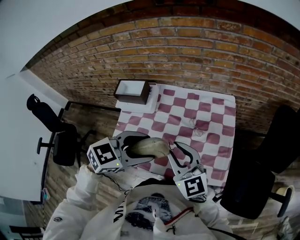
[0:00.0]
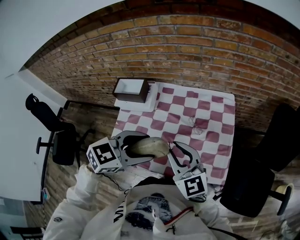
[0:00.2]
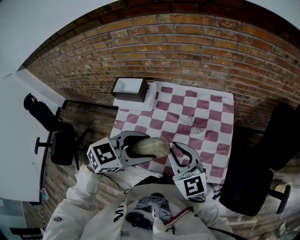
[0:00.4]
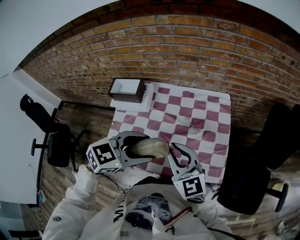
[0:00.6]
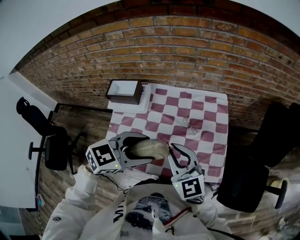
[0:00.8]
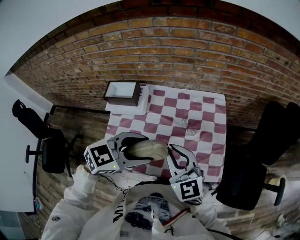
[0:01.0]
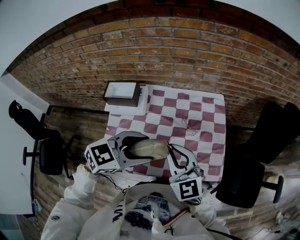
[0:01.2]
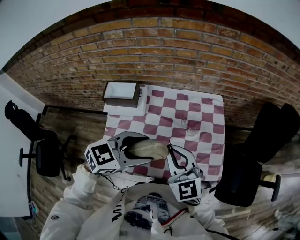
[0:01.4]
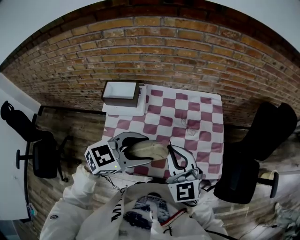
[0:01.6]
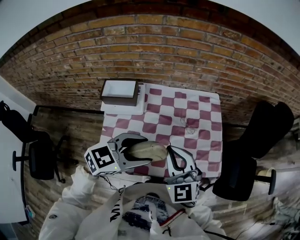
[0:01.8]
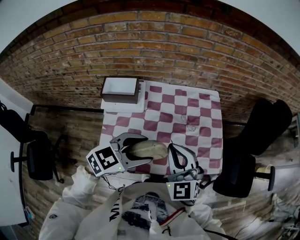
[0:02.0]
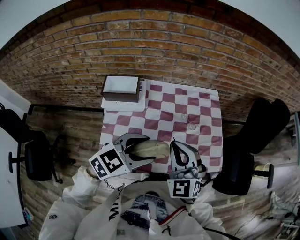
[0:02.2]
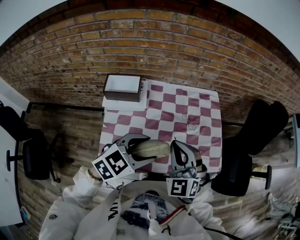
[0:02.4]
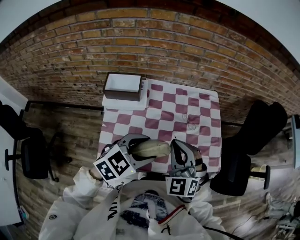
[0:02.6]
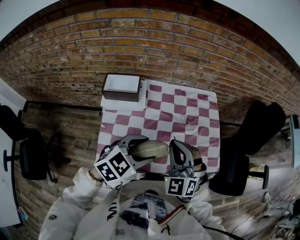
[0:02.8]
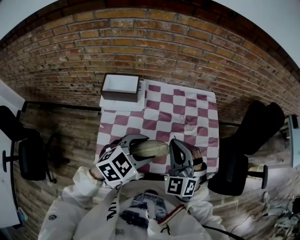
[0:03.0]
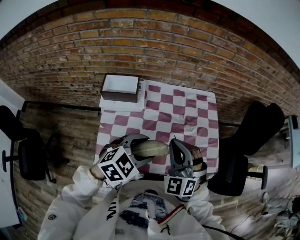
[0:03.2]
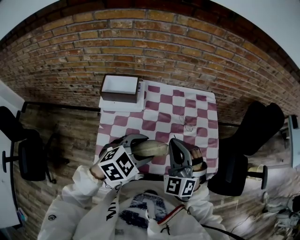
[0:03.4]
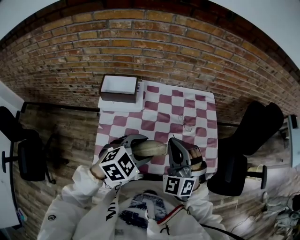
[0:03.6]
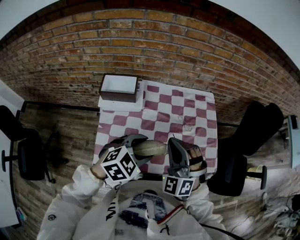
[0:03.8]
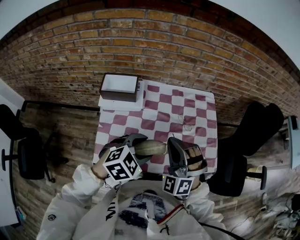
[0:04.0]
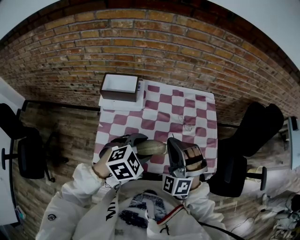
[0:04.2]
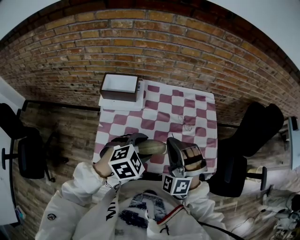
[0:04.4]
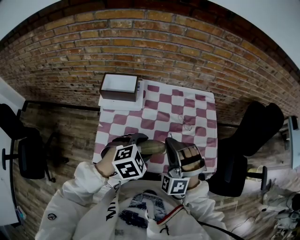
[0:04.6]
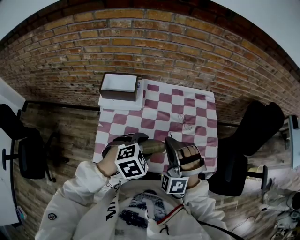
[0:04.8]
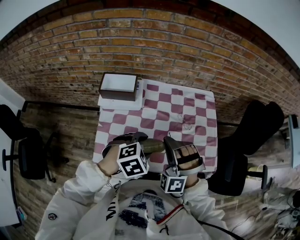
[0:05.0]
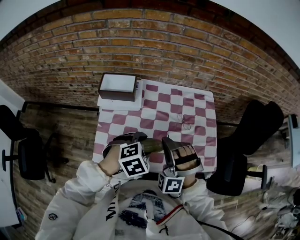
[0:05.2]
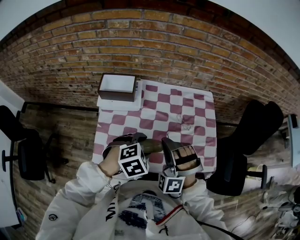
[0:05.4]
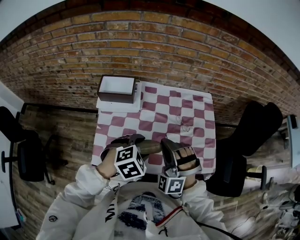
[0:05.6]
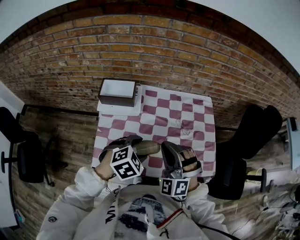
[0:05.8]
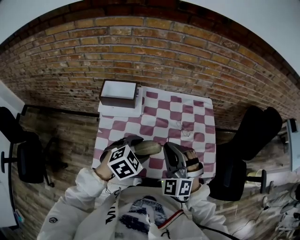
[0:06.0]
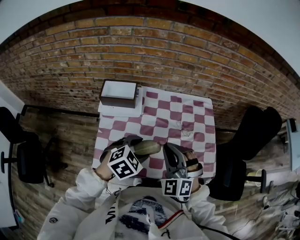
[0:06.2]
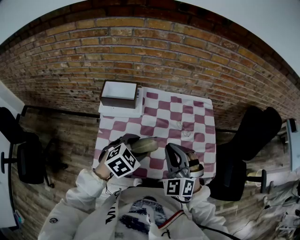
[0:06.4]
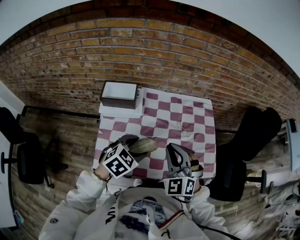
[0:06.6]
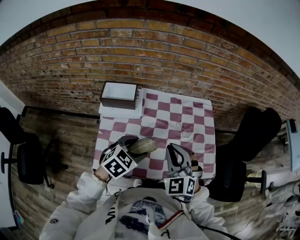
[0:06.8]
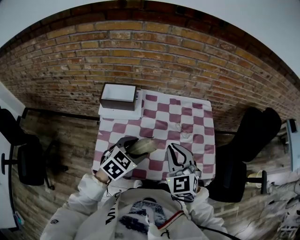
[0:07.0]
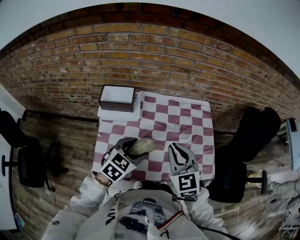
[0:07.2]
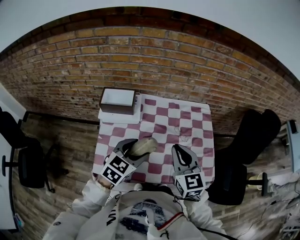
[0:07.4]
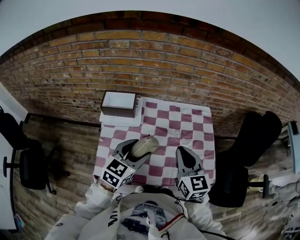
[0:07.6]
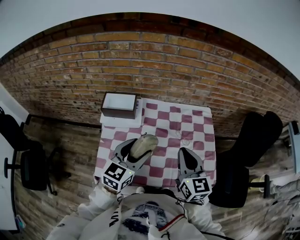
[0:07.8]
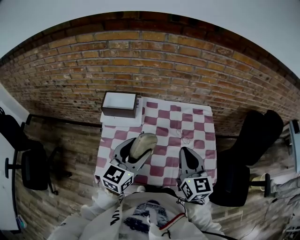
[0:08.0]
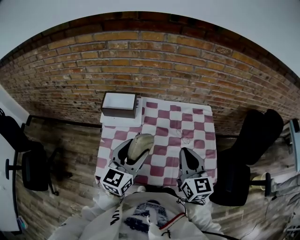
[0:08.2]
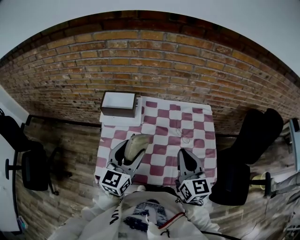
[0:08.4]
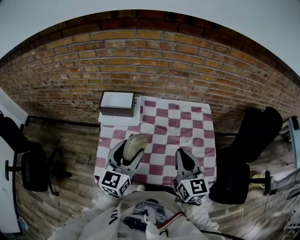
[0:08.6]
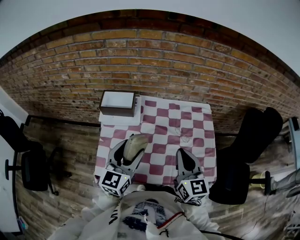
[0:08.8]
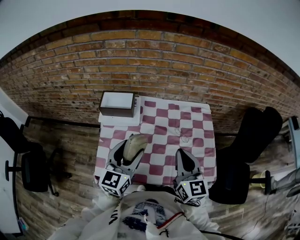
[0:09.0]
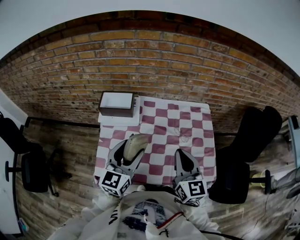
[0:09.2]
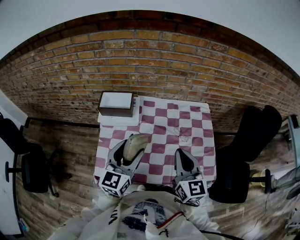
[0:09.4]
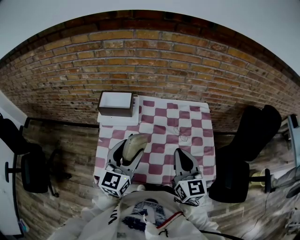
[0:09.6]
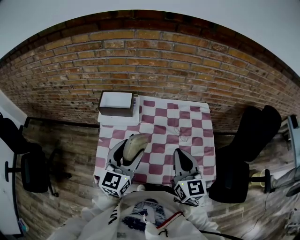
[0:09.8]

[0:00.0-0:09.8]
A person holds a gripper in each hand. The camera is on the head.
0:00.0 to 0:01.4: There are only small adjustments of the grippers.
0:01.4 to 0:02.8: The left gripper goes approximately 10 cm to the left and downward. Meanwhile the right gripper goes some 5 cm to the left, and turns by some 30 degrees.
0:02.8 to 0:04.2: The right gripper swivels roughly 20 degrees.
0:04.2 to 0:05.6: The grippers move only a little.
0:05.6 to 0:07.0: The left gripper changes its angle by some 30 degrees; the right gripper twists roughly 50 degrees clockwise, seen from behind.
0:07.0 to 0:08.4: The left gripper is displaced upward by approximately 10 cm, and points its fingers roughly 30 degrees further upward, while the right gripper goes roughly 5 cm to the right, and turns by about 40 degrees.
0:08.4 to 0:09.8: Both grippers stay about where they are.

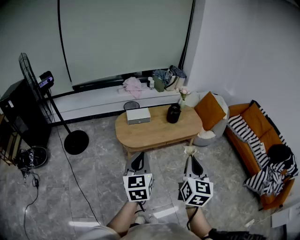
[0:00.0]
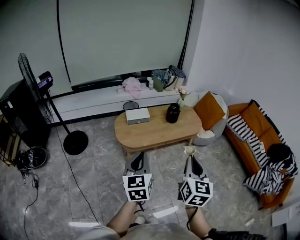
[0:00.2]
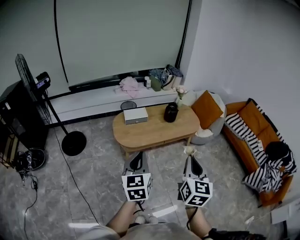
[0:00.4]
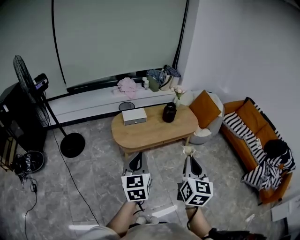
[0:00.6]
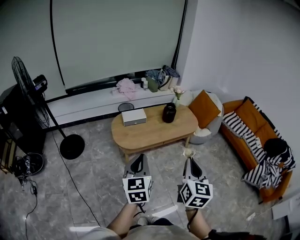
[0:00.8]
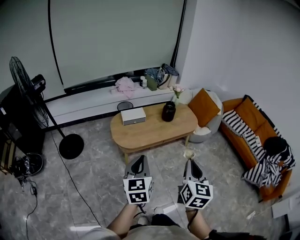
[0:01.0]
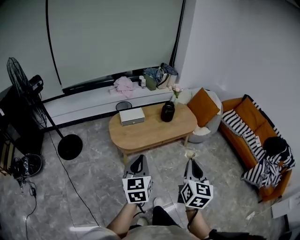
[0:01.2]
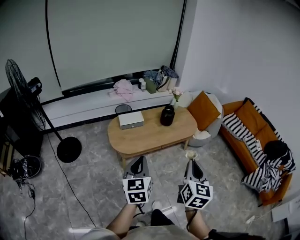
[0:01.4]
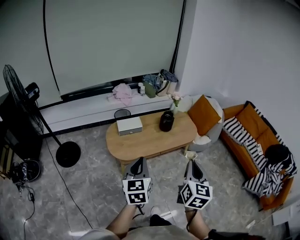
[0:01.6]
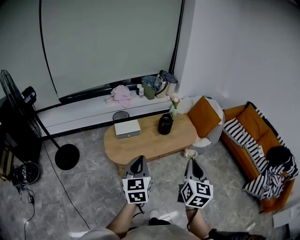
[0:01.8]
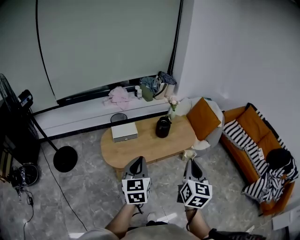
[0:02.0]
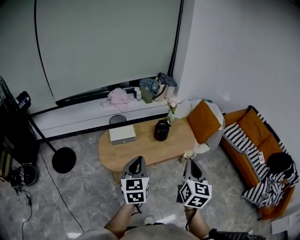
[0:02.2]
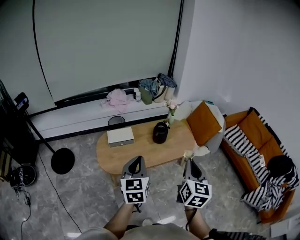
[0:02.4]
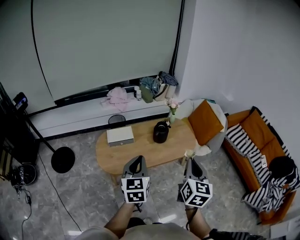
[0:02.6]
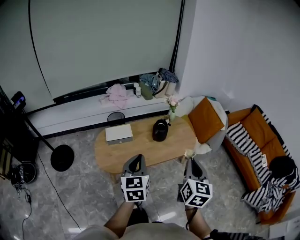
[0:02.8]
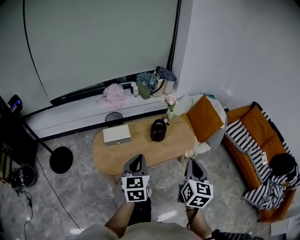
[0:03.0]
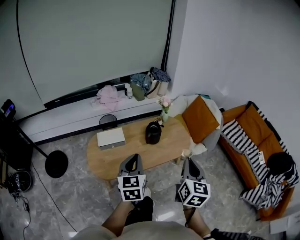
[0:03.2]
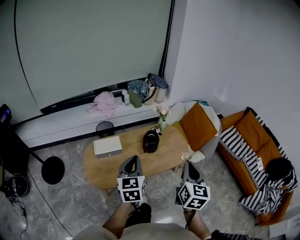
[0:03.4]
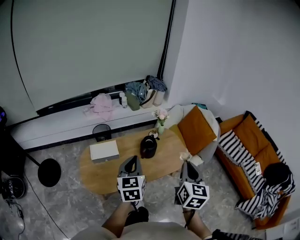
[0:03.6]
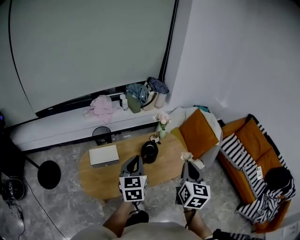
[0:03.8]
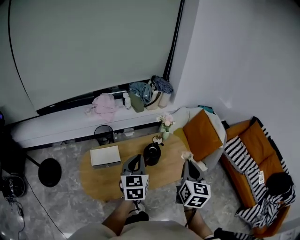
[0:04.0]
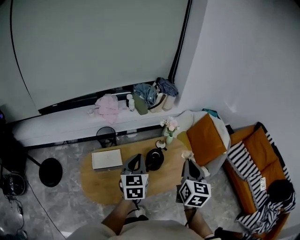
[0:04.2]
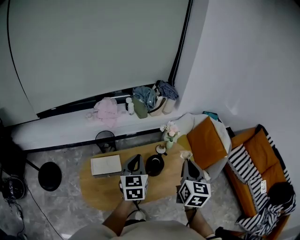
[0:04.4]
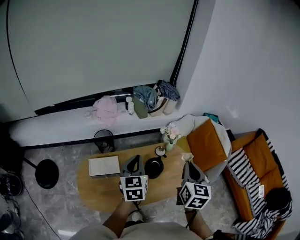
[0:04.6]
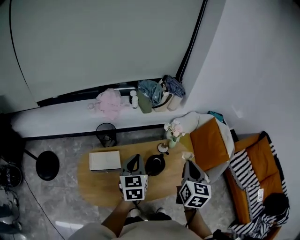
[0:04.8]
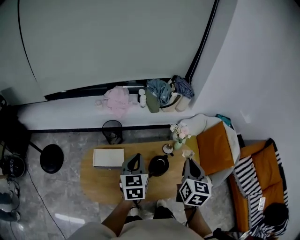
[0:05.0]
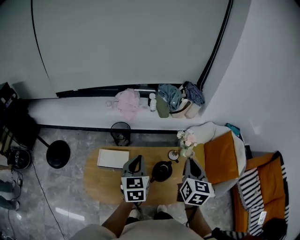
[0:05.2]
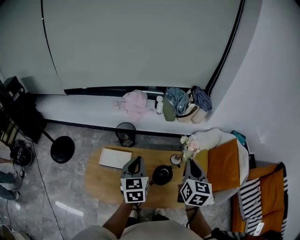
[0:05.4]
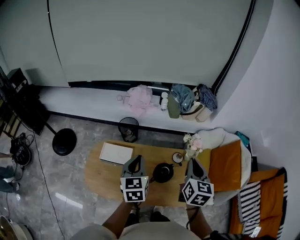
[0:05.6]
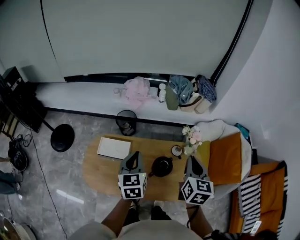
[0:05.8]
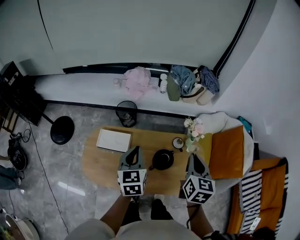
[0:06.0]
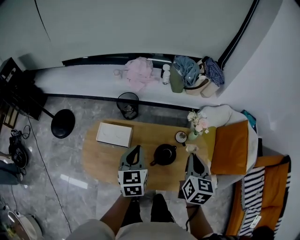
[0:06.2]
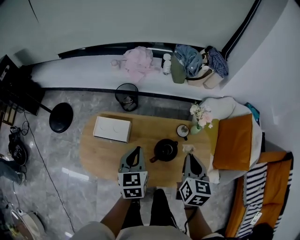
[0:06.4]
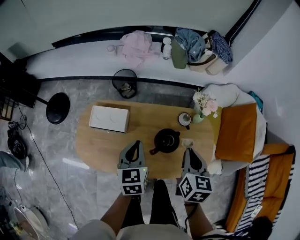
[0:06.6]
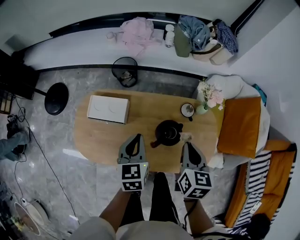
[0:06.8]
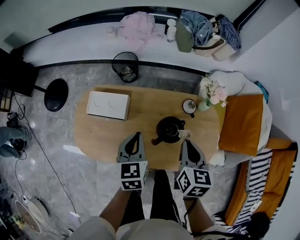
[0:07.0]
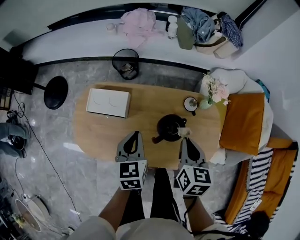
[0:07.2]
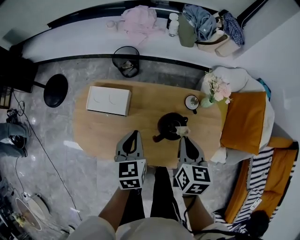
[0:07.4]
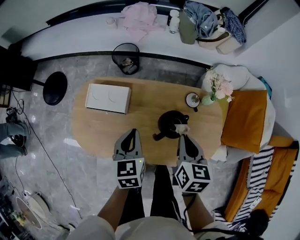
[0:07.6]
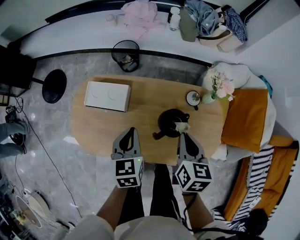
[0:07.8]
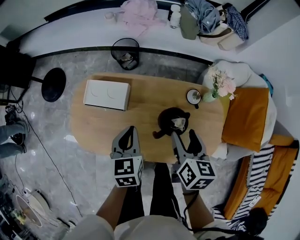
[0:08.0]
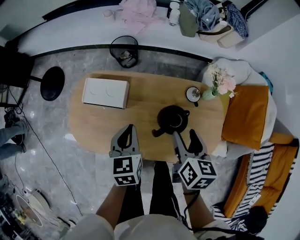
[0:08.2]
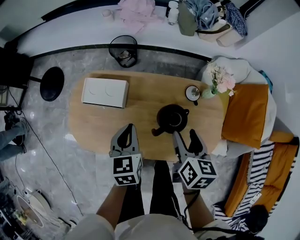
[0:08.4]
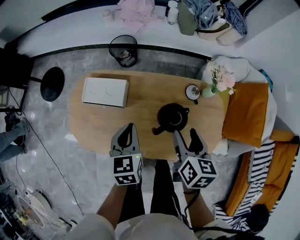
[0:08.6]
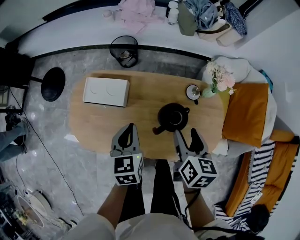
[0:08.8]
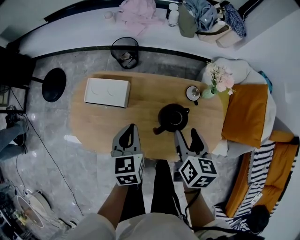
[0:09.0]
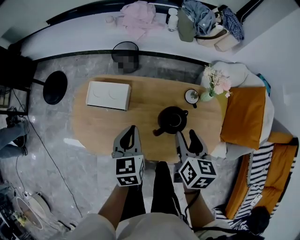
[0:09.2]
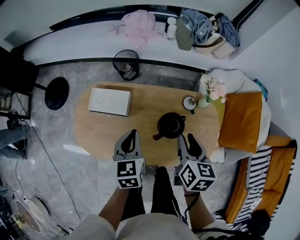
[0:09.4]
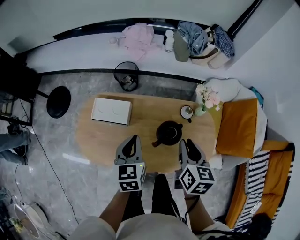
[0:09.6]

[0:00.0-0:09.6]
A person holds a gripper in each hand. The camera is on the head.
0:00.0 to 0:01.6: Both grippers move forward, roughly 10 cm.
0:01.6 to 0:03.2: The right gripper heads forward and to the right, covering approximately 20 cm. Meanwhile the left gripper goes some 20 cm forward.
0:03.2 to 0:04.8: Both grippers move forward, some 30 cm.
0:04.8 to 0:06.4: The right gripper shifts approximately 15 cm downward and forward, and changes its angle by about 20 degrees, while the left gripper is displaced downward by some 10 cm, and changes its angle by about 20 degrees.
0:06.4 to 0:08.0: Both grippers move downward, some 10 cm. The right gripper opens up.
0:08.0 to 0:09.6: Both grippers travel together upward, approximately 5 cm. The right gripper closes.

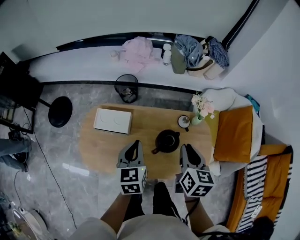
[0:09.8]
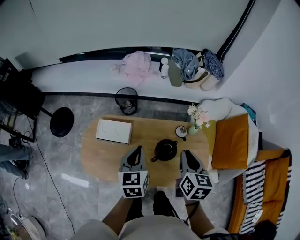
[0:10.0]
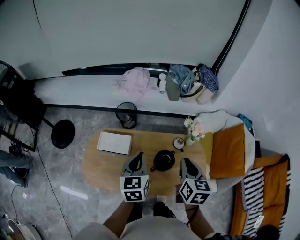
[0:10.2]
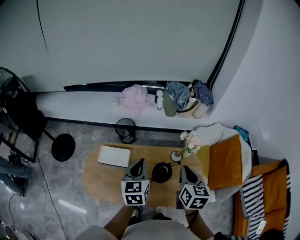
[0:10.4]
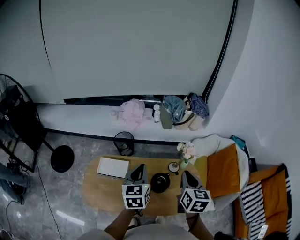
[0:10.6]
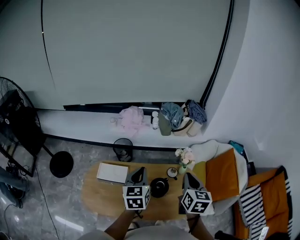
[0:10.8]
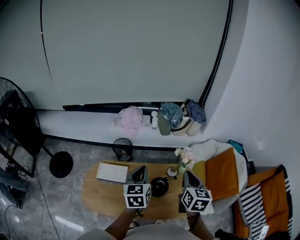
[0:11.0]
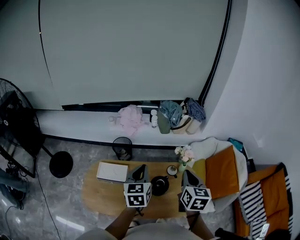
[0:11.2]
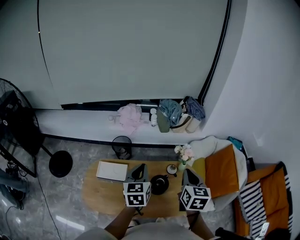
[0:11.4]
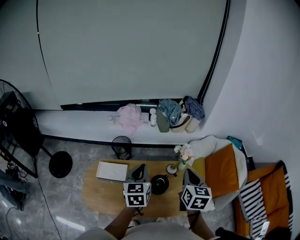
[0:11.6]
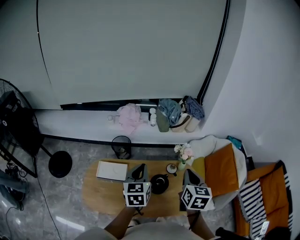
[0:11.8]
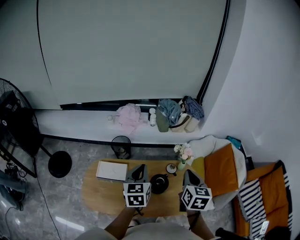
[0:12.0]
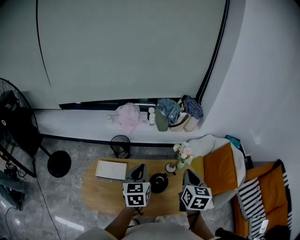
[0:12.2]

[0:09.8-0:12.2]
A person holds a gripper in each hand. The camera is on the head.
0:09.8 to 0:11.0: The two grippers go some 10 cm upward.
0:11.0 to 0:12.2: The two grippers keep their place.

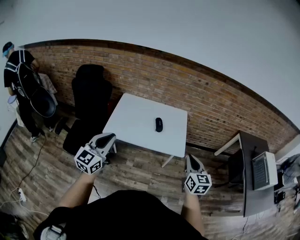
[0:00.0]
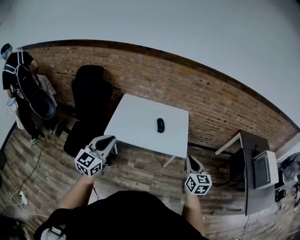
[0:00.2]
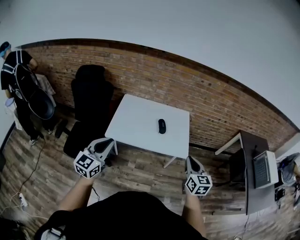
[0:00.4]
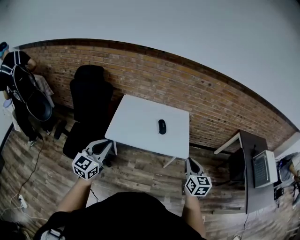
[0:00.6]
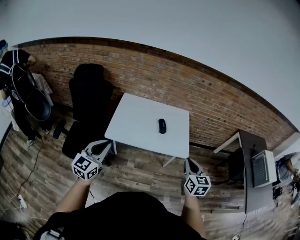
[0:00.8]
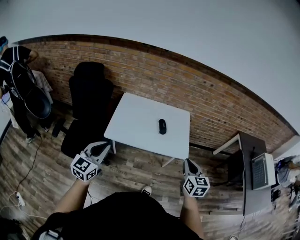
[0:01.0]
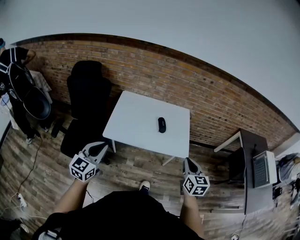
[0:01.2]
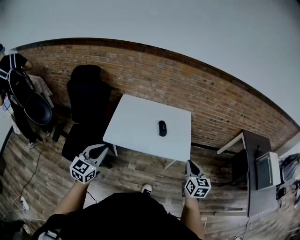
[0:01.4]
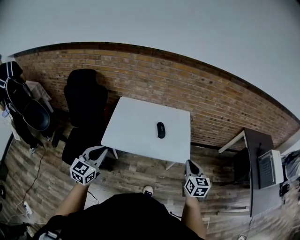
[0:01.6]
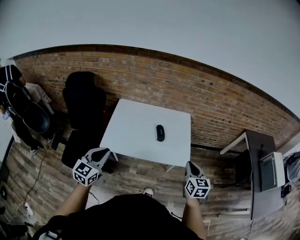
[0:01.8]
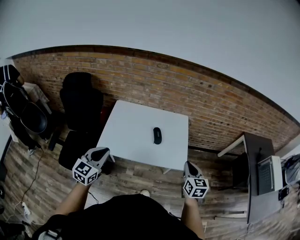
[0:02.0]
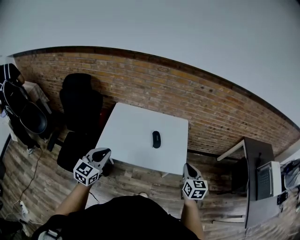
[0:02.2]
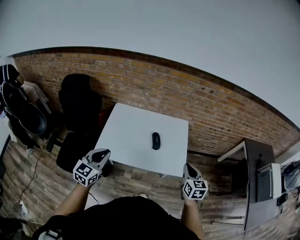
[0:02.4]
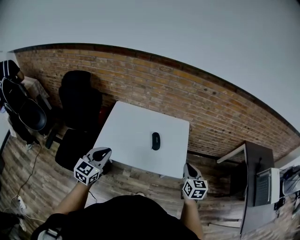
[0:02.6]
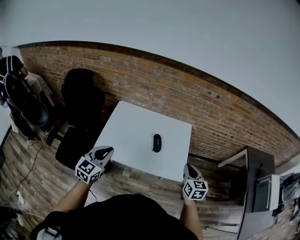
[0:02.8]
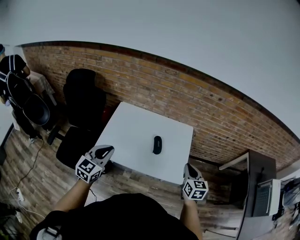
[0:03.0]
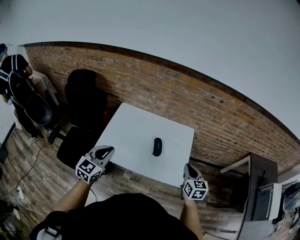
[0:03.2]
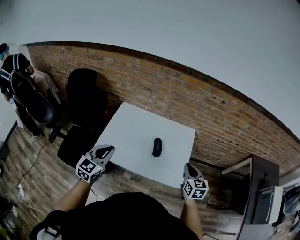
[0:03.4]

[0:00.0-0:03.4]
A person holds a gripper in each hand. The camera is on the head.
0:00.0 to 0:01.6: The right gripper travels forward and downward by some 10 cm; the left gripper moves downward, forward and to the left, some 15 cm.
0:01.6 to 0:03.4: The right gripper travels forward by roughly 20 cm. The left gripper shifts roughly 20 cm forward and to the right.
